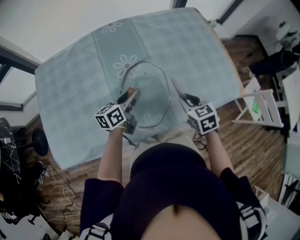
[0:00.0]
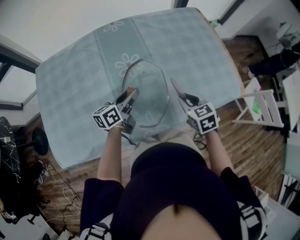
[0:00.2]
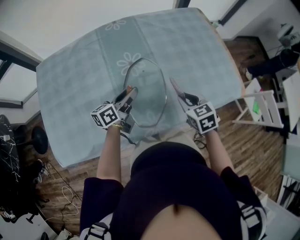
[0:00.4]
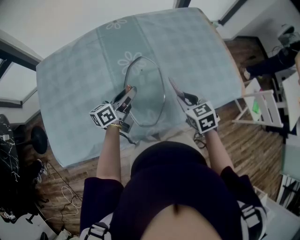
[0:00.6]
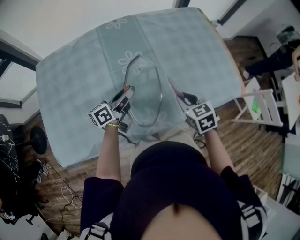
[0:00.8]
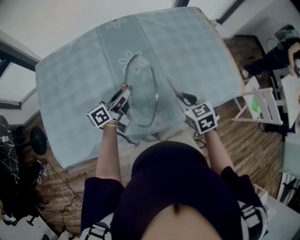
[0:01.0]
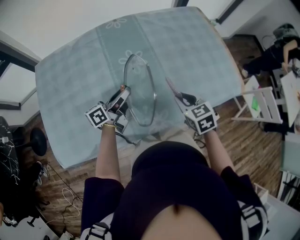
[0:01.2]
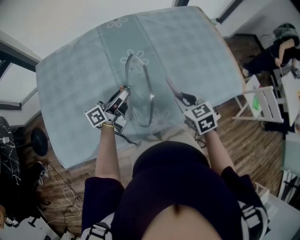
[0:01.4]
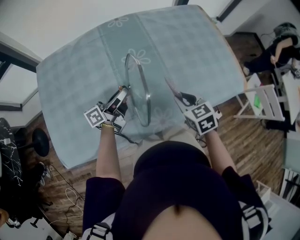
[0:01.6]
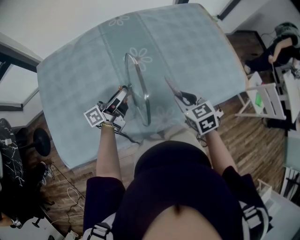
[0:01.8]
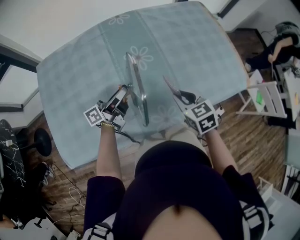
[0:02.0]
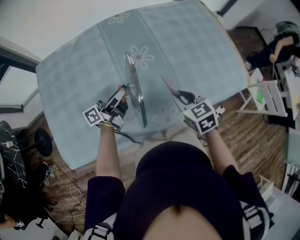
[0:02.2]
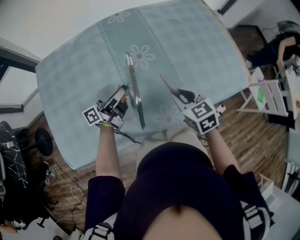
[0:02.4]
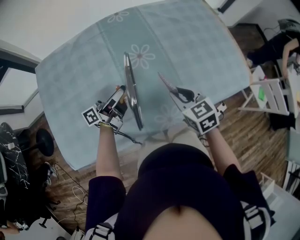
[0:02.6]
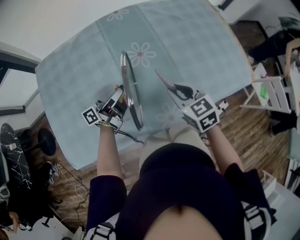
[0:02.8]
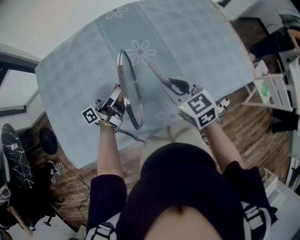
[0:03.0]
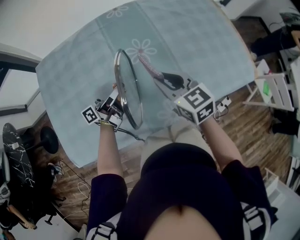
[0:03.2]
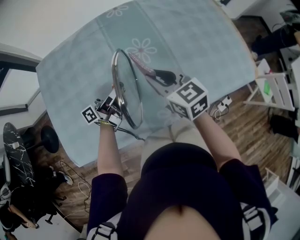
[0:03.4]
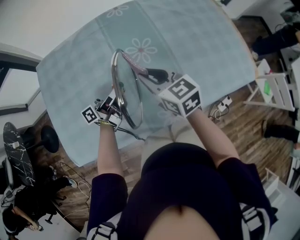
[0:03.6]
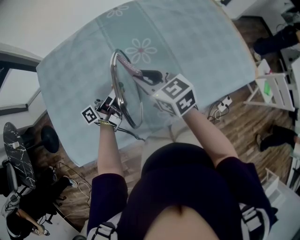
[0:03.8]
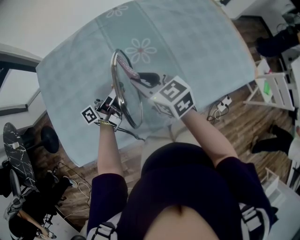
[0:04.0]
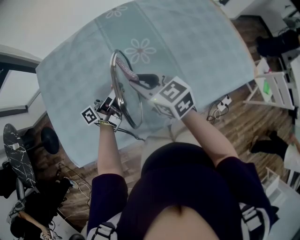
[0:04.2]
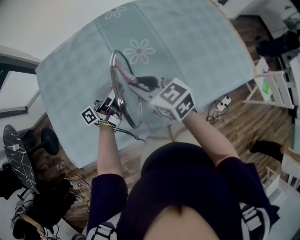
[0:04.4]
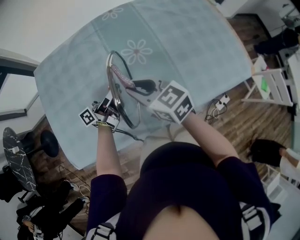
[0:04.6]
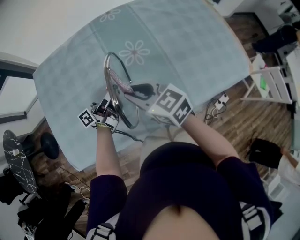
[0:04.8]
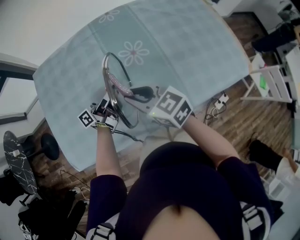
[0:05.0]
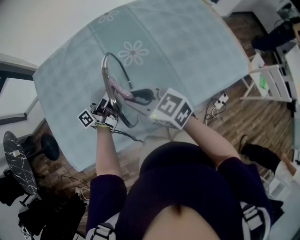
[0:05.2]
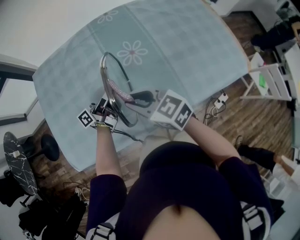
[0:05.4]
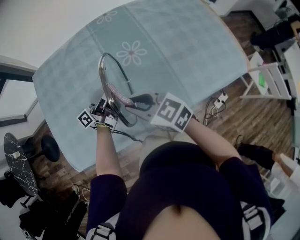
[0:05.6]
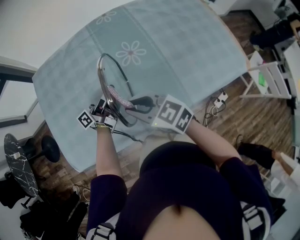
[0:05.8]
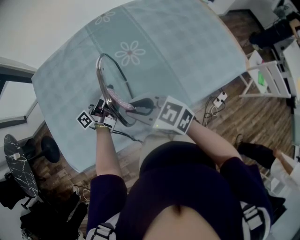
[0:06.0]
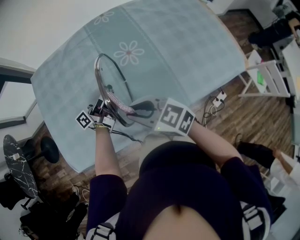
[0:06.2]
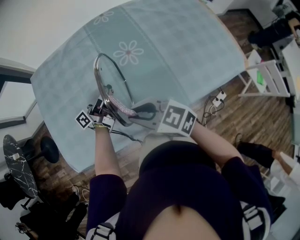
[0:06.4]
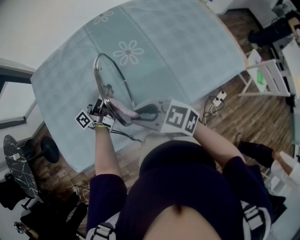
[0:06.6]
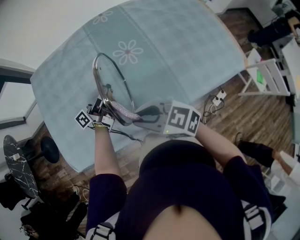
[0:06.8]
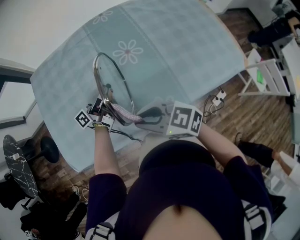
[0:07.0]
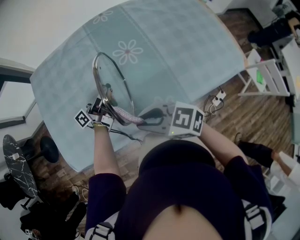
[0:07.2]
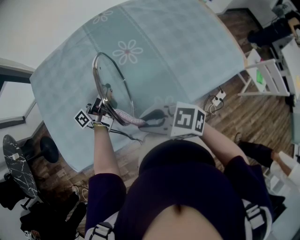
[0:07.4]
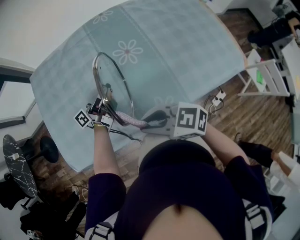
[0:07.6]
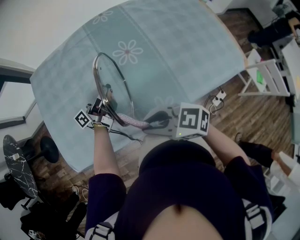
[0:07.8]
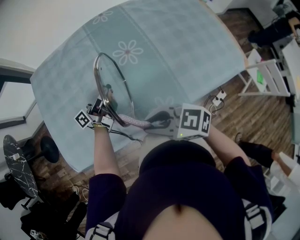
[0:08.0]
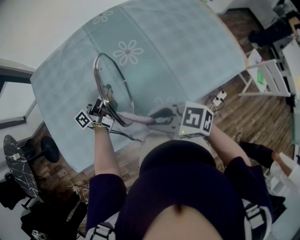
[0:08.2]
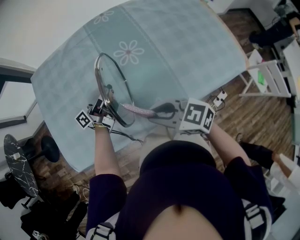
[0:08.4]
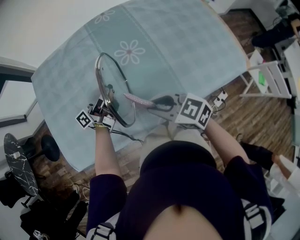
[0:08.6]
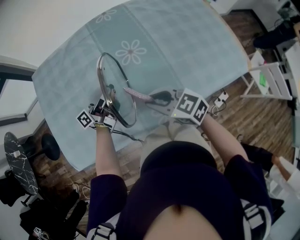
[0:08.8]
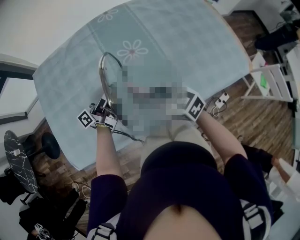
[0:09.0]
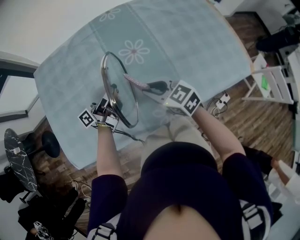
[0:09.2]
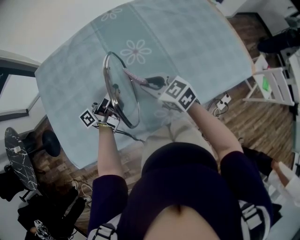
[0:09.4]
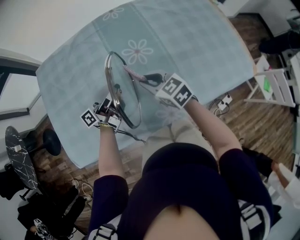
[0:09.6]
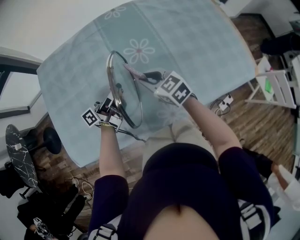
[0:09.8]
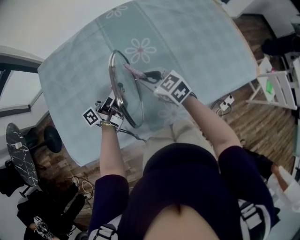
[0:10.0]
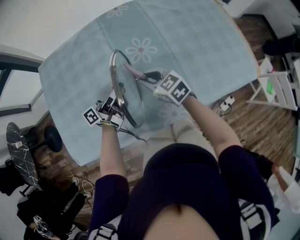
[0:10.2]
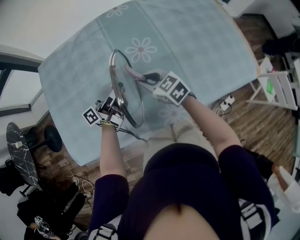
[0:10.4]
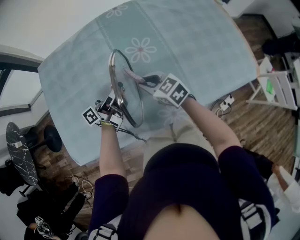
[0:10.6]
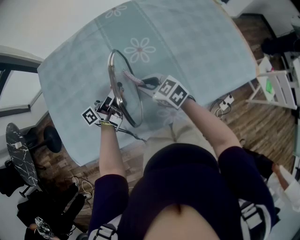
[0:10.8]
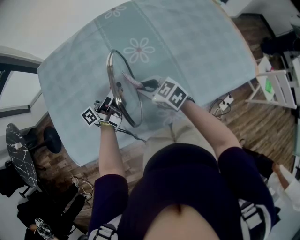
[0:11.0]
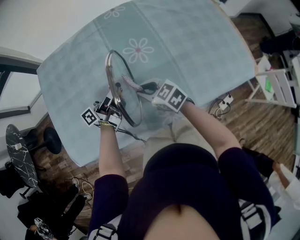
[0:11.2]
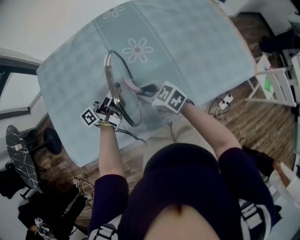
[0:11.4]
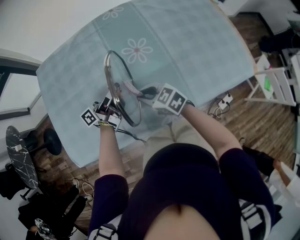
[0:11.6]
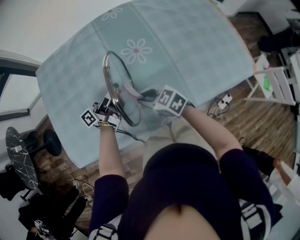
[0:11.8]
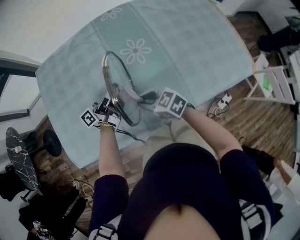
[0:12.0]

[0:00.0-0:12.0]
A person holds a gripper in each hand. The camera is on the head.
0:00.0 to 0:01.6: The two grippers go approximately 10 cm to the left. The left gripper turns by roughly 30 degrees.
0:01.6 to 0:03.0: The right gripper heads to the left, covering about 10 cm.
0:03.0 to 0:04.4: The right gripper is displaced to the left by about 10 cm.
0:04.4 to 0:06.0: The right gripper is displaced backward by approximately 10 cm.
0:06.0 to 0:07.6: The right gripper moves some 10 cm.
0:07.6 to 0:09.0: The right gripper changes place by approximately 15 cm, and rotates approximately 20 degrees.
0:09.0 to 0:10.4: The right gripper is displaced forward and downward by roughly 10 cm.
0:10.4 to 0:12.0: The right gripper moves backward, some 10 cm.

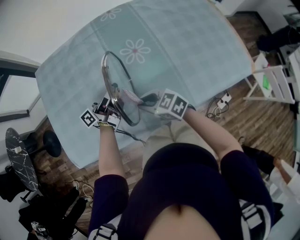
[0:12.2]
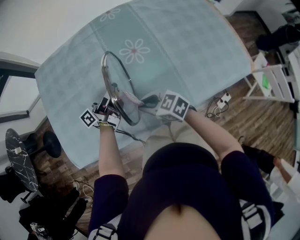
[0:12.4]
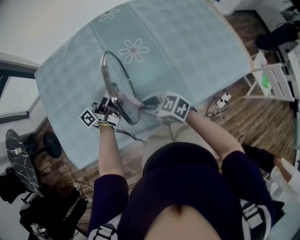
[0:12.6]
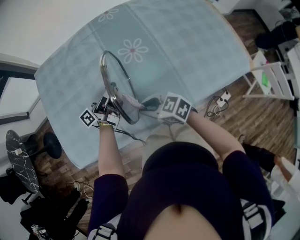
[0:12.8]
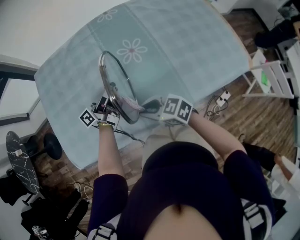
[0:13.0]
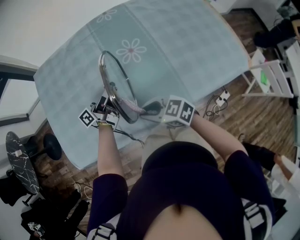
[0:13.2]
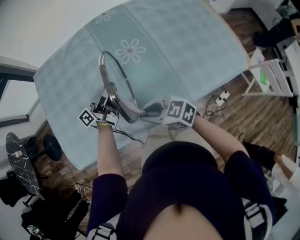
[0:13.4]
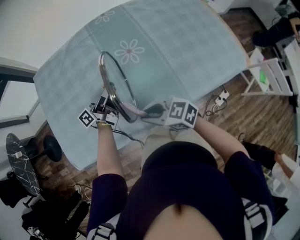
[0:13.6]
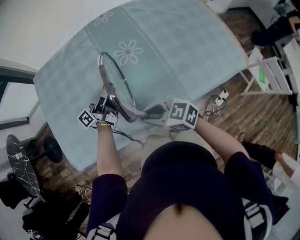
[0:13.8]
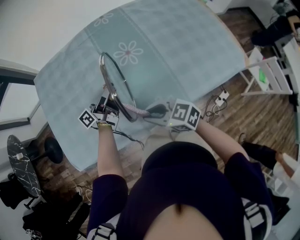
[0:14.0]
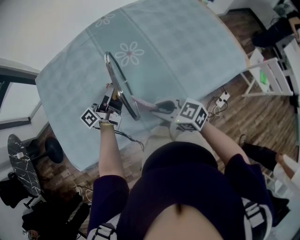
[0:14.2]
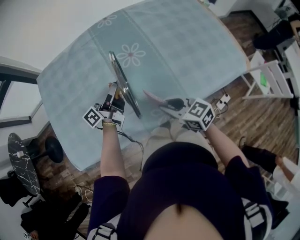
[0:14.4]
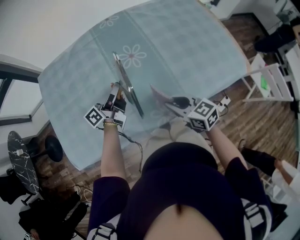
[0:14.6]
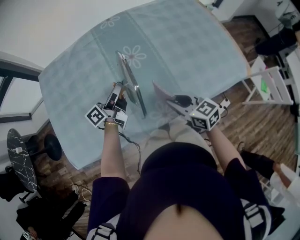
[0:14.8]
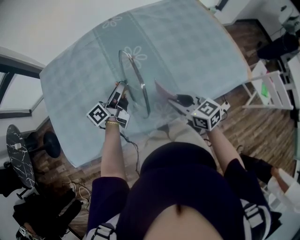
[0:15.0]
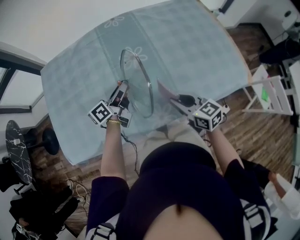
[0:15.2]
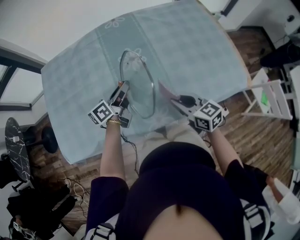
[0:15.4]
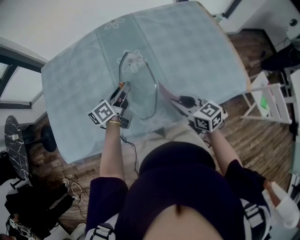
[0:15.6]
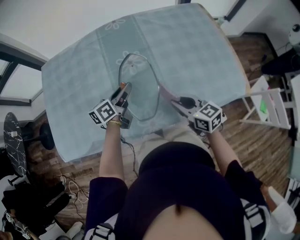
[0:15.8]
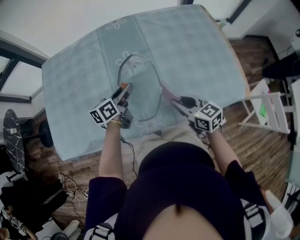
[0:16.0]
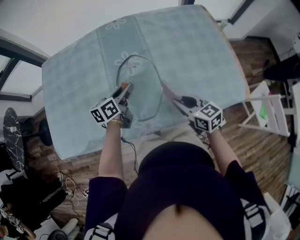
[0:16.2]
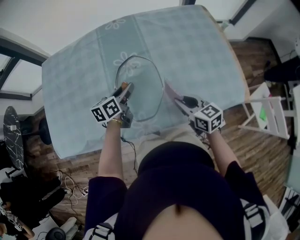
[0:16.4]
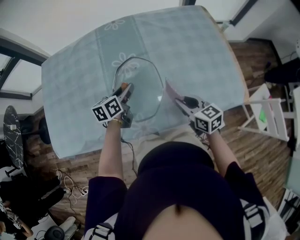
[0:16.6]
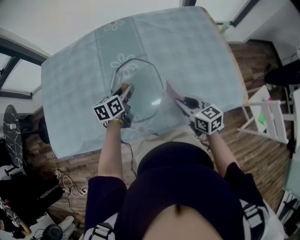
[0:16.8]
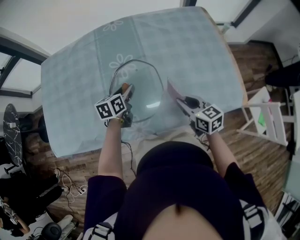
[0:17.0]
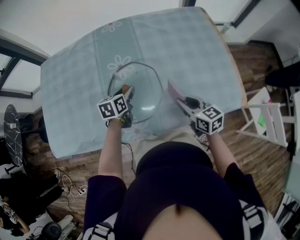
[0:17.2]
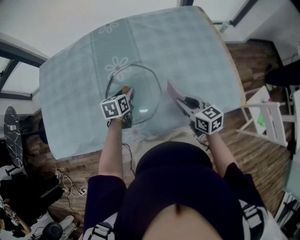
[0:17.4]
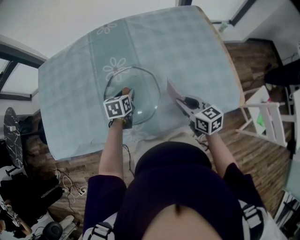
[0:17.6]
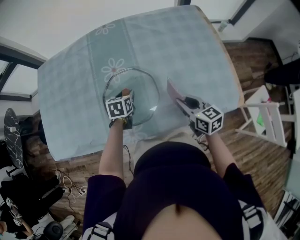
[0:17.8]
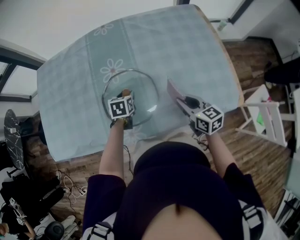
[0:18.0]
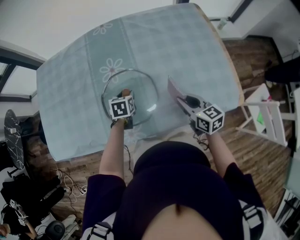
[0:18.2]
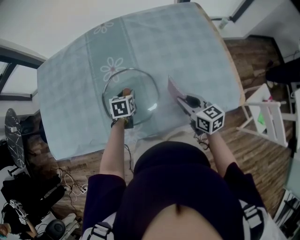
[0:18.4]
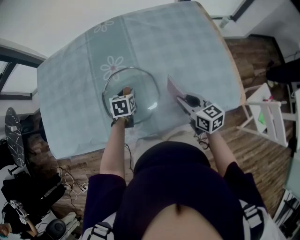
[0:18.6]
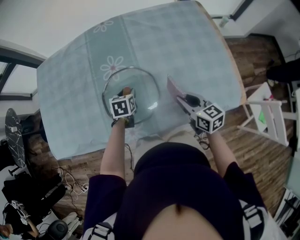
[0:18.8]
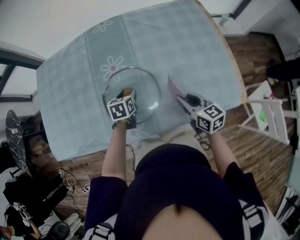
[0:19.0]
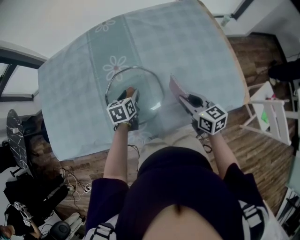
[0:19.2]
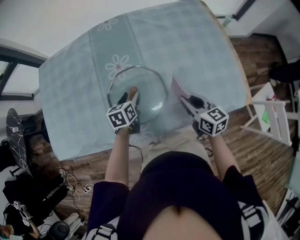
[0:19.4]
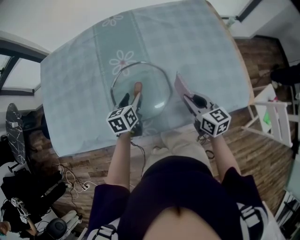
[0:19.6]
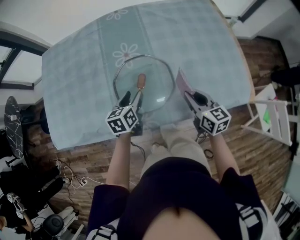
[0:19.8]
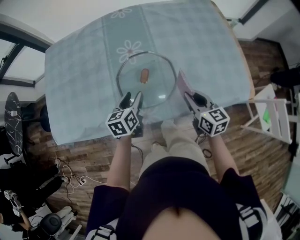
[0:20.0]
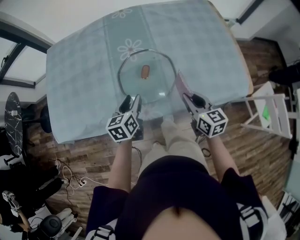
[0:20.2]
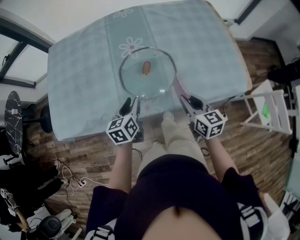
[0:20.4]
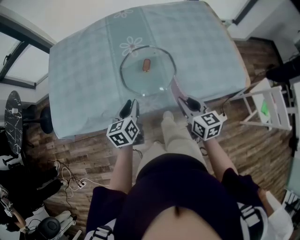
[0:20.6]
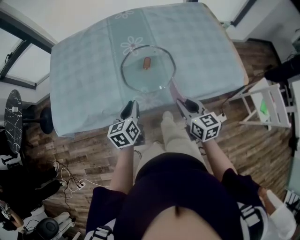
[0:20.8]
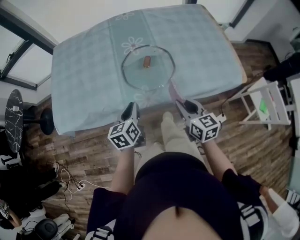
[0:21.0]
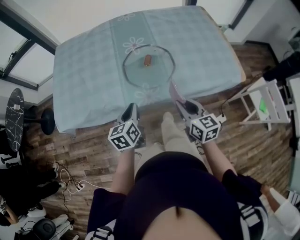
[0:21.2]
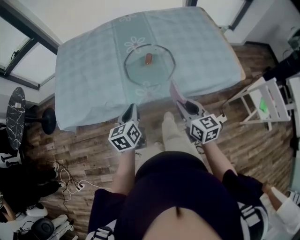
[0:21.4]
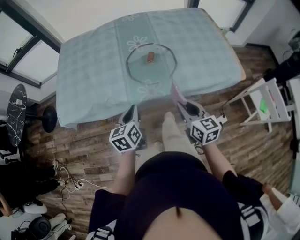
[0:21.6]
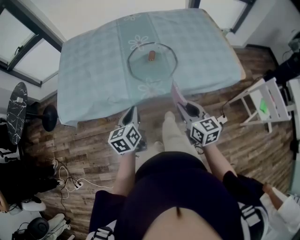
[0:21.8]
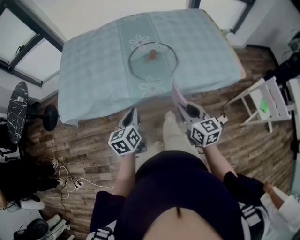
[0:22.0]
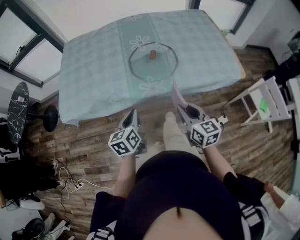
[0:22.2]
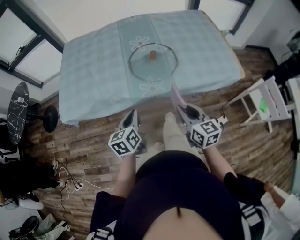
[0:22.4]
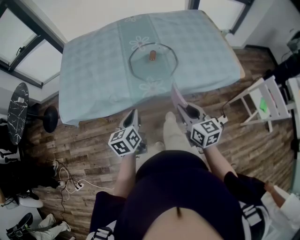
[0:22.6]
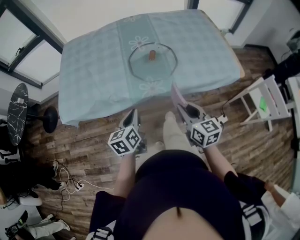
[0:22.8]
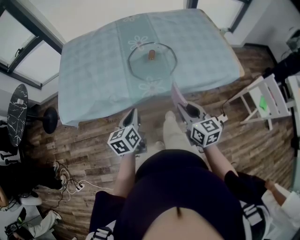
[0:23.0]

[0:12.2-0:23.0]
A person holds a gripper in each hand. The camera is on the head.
0:12.2 to 0:13.8: The right gripper shifts approximately 10 cm backward and upward.
0:13.8 to 0:15.2: The left gripper shifts some 5 cm to the right, and rotates about 20 degrees; the right gripper heads to the right, covering some 20 cm, and changes its angle by approximately 30 degrees.
0:15.2 to 0:16.8: Both grippers move to the right, roughly 10 cm. The left gripper changes its angle by some 30 degrees.
0:16.8 to 0:18.4: The right gripper shifts approximately 5 cm to the right, while the left gripper is displaced downward and to the right by roughly 10 cm, and turns by some 30 degrees.
0:18.4 to 0:20.0: The left gripper shifts some 15 cm backward, to the left and upward, and turns by about 30 degrees, while the right gripper goes about 5 cm to the left.
0:20.0 to 0:21.4: The left gripper moves backward, roughly 20 cm, and closes. The right gripper heads backward and to the left, covering some 20 cm.
0:21.4 to 0:23.0: Both grippers travel together backward, about 5 cm.

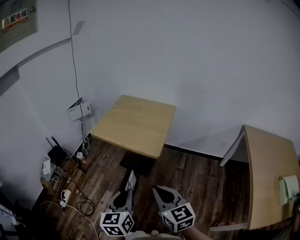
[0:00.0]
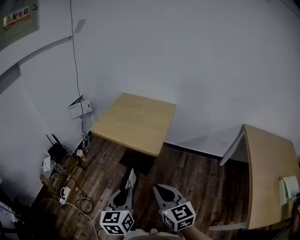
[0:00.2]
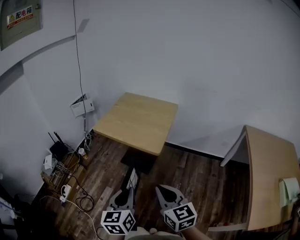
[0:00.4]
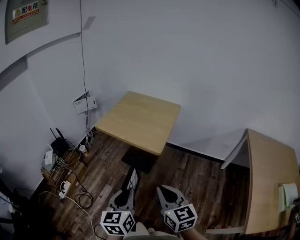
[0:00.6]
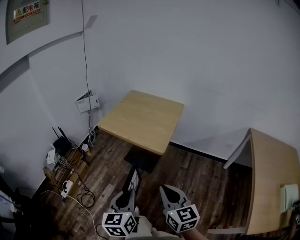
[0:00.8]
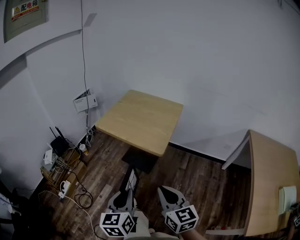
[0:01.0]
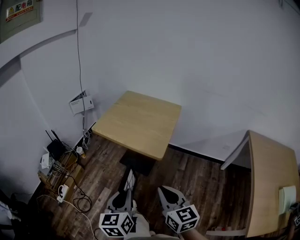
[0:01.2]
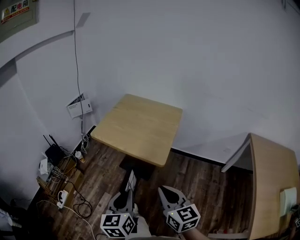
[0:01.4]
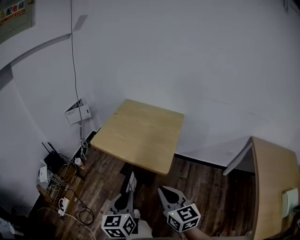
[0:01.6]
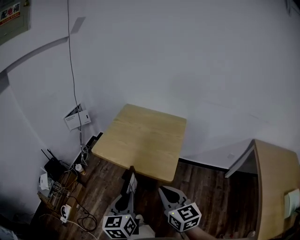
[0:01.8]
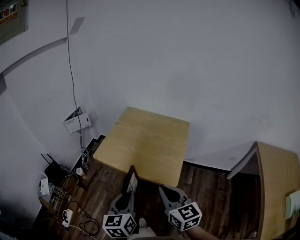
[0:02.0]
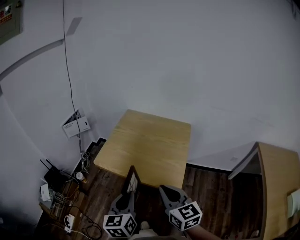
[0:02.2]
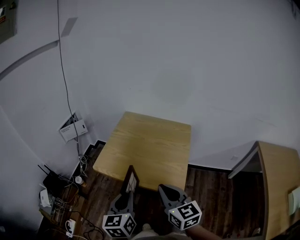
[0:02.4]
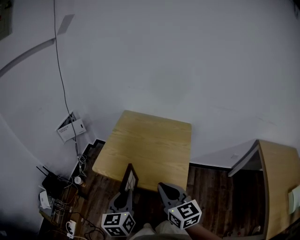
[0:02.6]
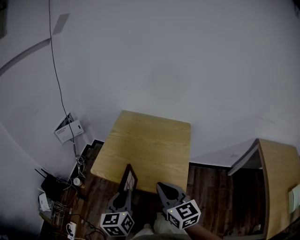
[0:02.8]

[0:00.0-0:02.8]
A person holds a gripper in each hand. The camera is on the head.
0:00.0 to 0:01.4: The two grippers go about 10 cm forward.
0:01.4 to 0:02.8: The grippers both shift forward by some 25 cm.
